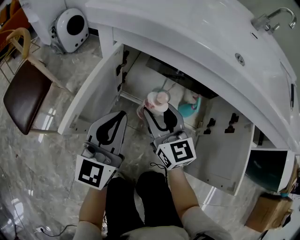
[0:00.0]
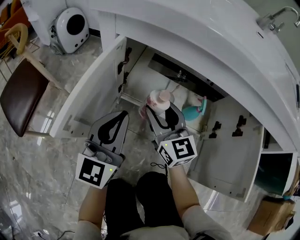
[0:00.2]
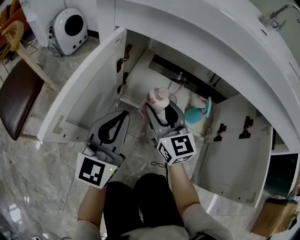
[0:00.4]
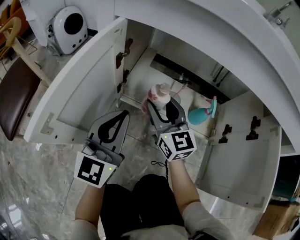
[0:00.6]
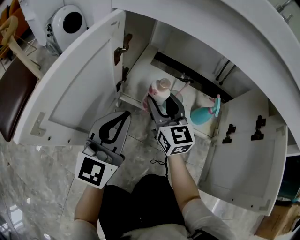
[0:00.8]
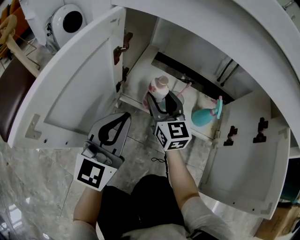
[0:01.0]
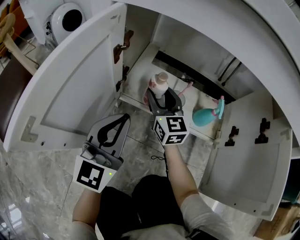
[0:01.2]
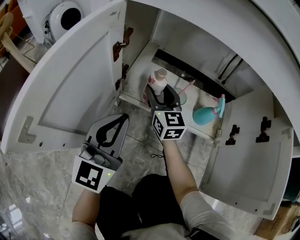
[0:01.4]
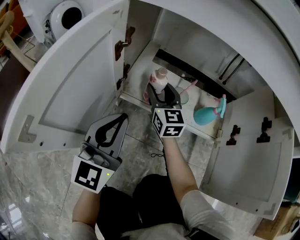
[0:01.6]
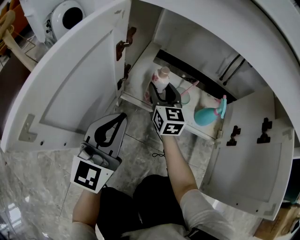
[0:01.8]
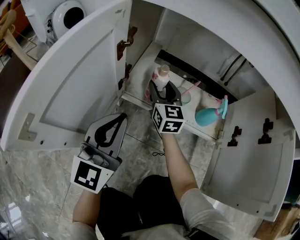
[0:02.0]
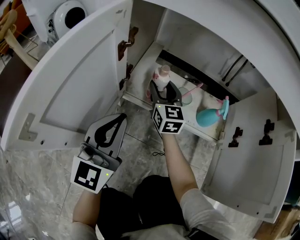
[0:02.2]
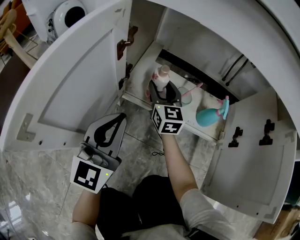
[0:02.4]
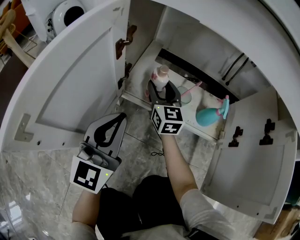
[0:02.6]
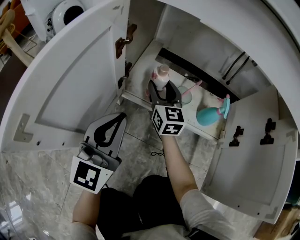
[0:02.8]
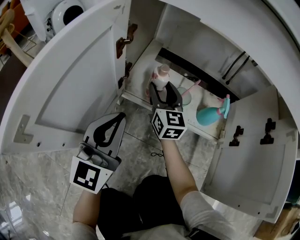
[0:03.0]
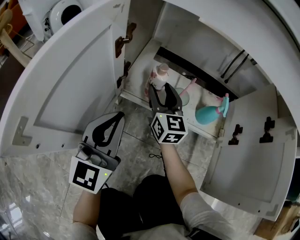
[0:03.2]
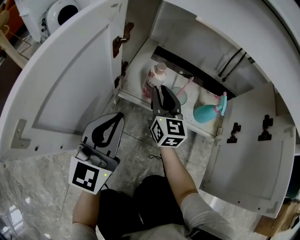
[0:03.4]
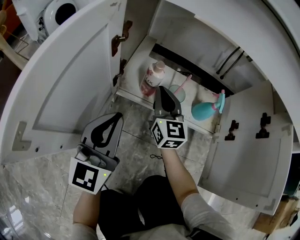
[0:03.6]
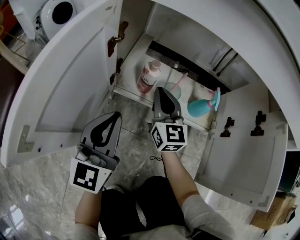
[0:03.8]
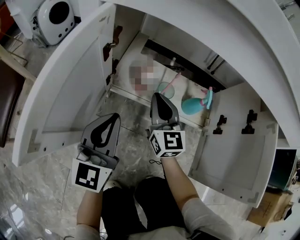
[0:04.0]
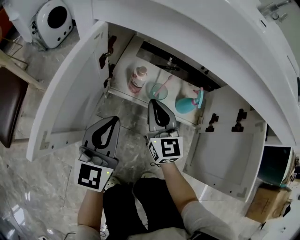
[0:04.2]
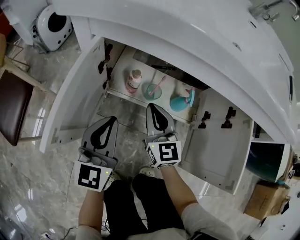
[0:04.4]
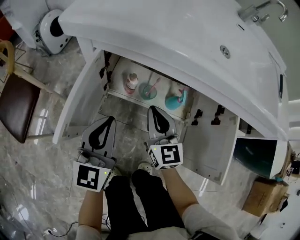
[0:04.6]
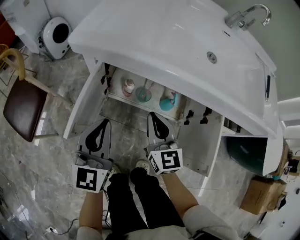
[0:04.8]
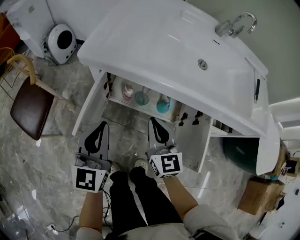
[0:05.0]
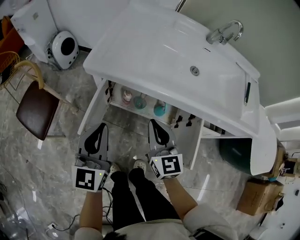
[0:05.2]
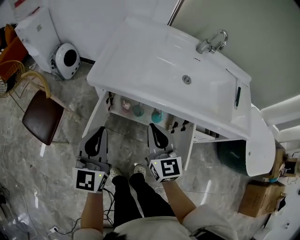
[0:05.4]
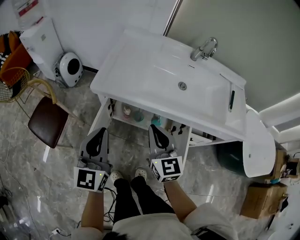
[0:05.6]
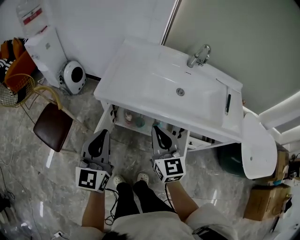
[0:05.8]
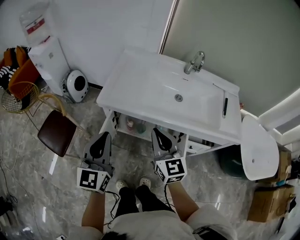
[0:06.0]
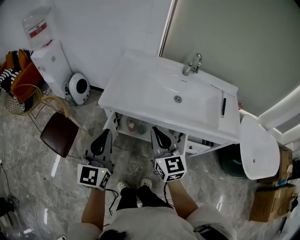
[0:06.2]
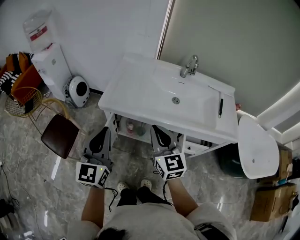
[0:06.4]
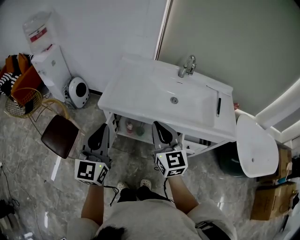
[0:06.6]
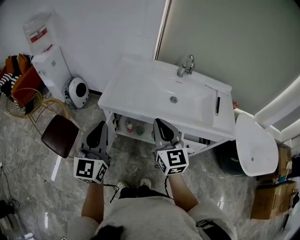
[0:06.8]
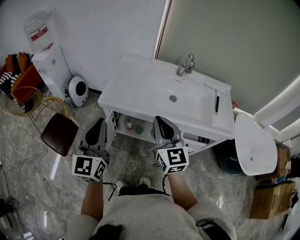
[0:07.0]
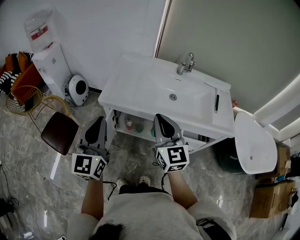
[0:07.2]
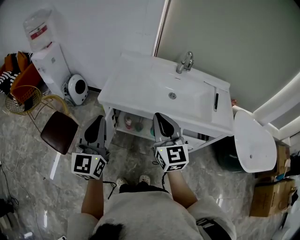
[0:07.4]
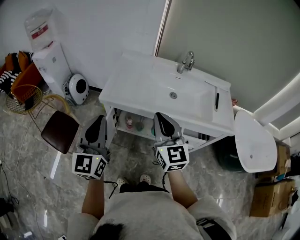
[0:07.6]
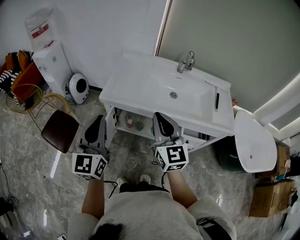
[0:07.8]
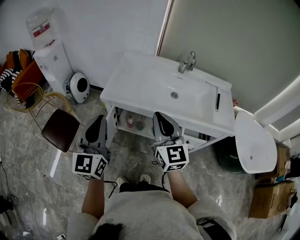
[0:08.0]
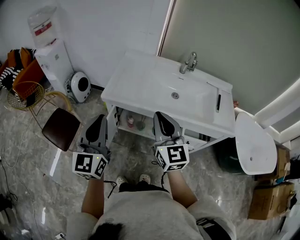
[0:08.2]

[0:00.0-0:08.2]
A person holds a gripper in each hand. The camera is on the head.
0.0 to 1.6 s: The right gripper travels downward and forward by roughly 25 cm. Meanwhile the left gripper shifts roughly 15 cm downward.
1.6 to 3.2 s: The grippers make only small movements.
3.2 to 5.0 s: The right gripper goes roughly 40 cm upward and backward, and closes, while the left gripper travels upward by approximately 35 cm.
5.0 to 6.6 s: Both grippers move upward, approximately 30 cm.
6.6 to 8.2 s: The grippers make only small movements.

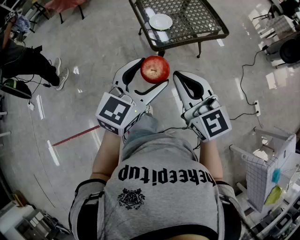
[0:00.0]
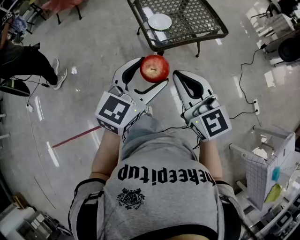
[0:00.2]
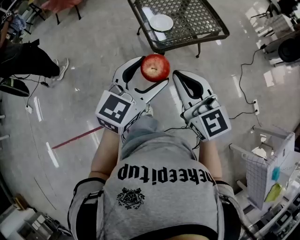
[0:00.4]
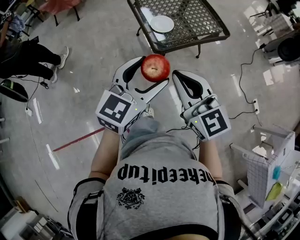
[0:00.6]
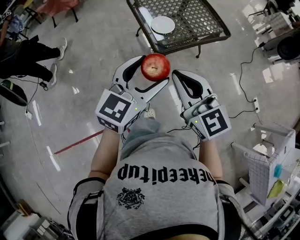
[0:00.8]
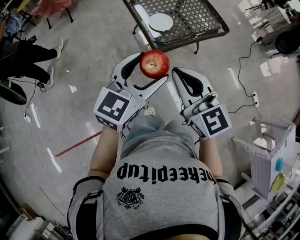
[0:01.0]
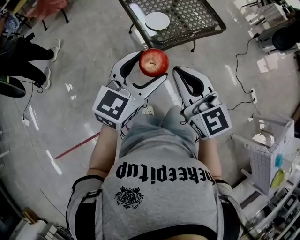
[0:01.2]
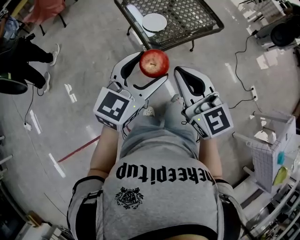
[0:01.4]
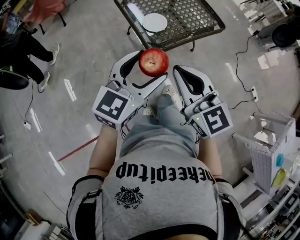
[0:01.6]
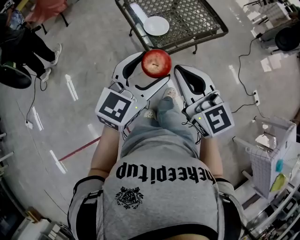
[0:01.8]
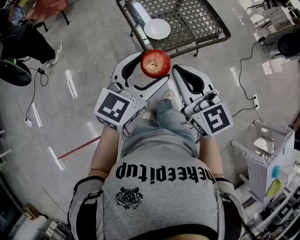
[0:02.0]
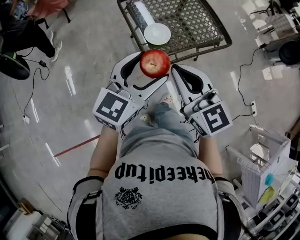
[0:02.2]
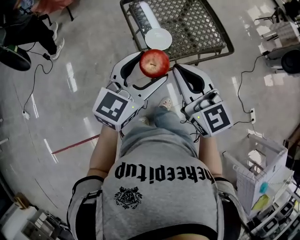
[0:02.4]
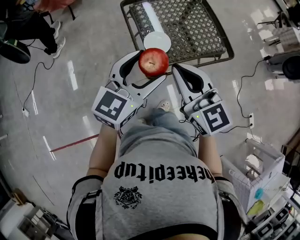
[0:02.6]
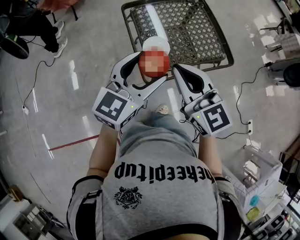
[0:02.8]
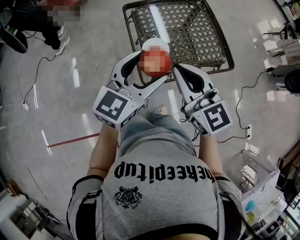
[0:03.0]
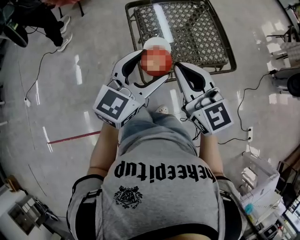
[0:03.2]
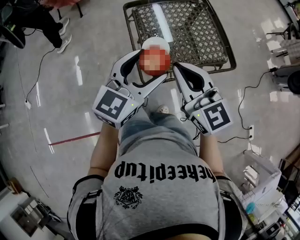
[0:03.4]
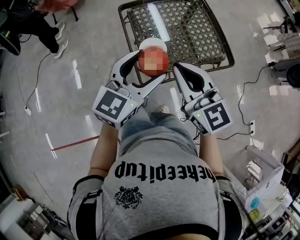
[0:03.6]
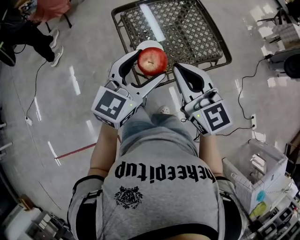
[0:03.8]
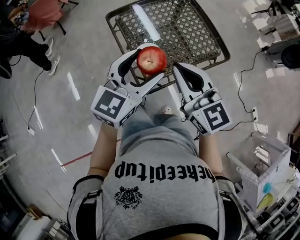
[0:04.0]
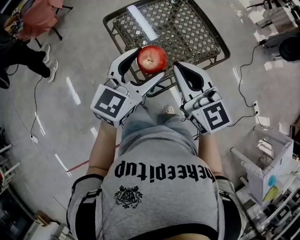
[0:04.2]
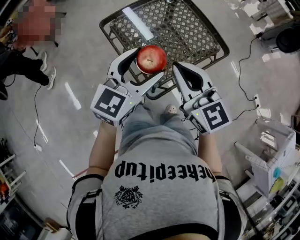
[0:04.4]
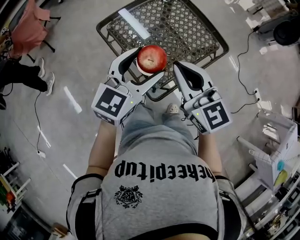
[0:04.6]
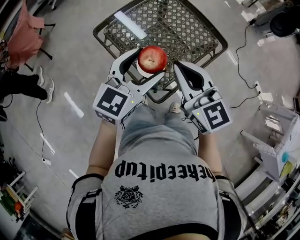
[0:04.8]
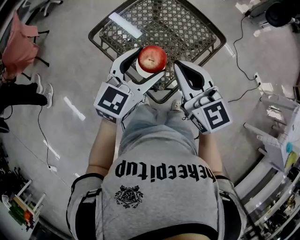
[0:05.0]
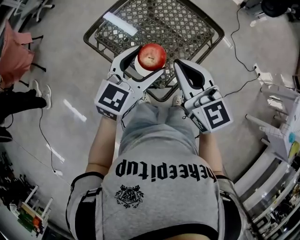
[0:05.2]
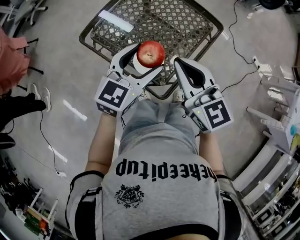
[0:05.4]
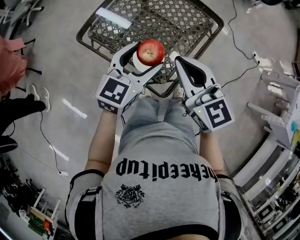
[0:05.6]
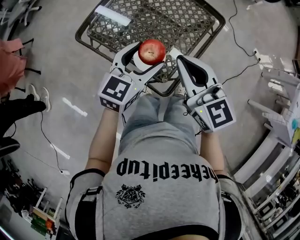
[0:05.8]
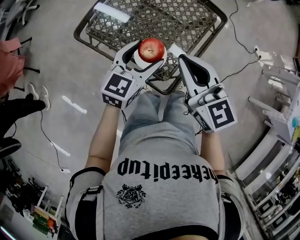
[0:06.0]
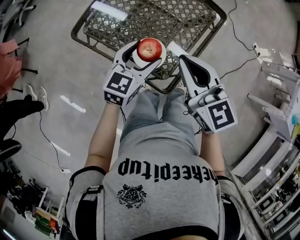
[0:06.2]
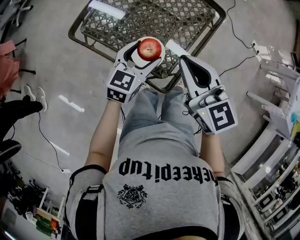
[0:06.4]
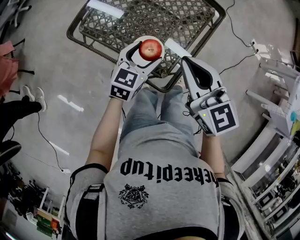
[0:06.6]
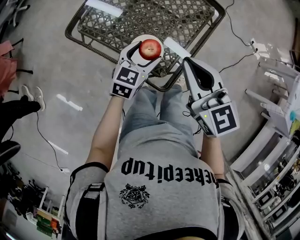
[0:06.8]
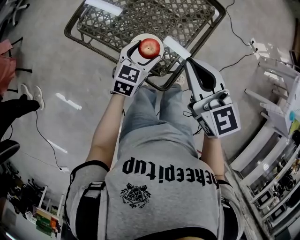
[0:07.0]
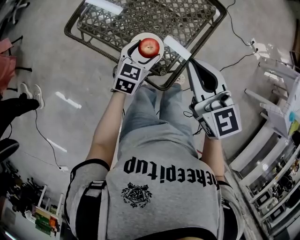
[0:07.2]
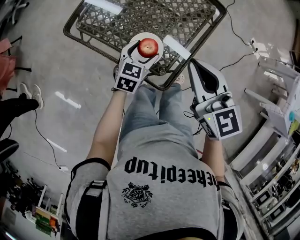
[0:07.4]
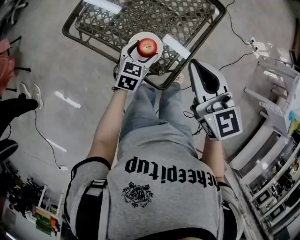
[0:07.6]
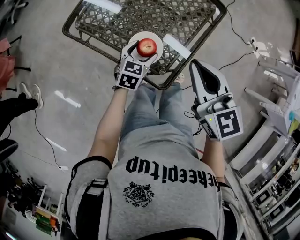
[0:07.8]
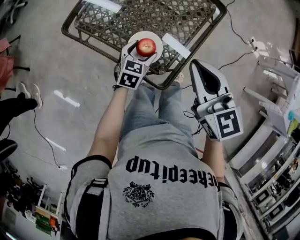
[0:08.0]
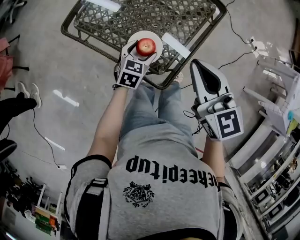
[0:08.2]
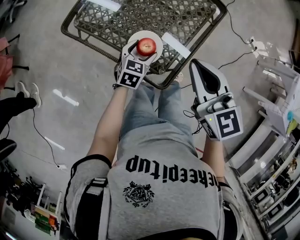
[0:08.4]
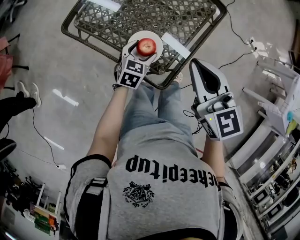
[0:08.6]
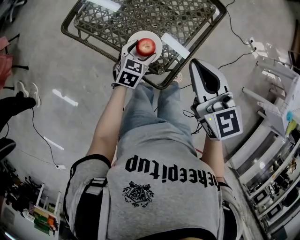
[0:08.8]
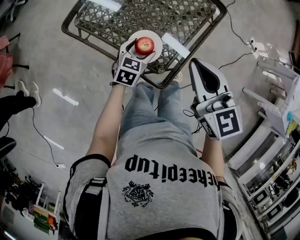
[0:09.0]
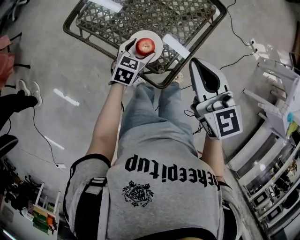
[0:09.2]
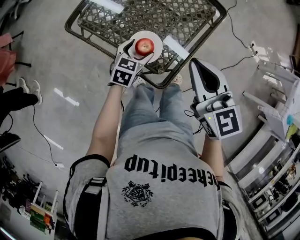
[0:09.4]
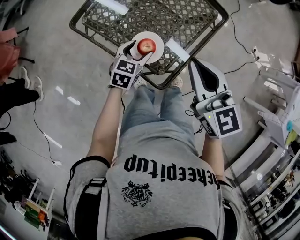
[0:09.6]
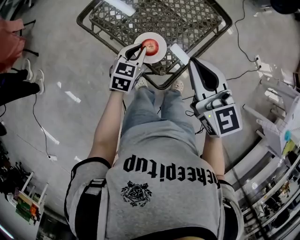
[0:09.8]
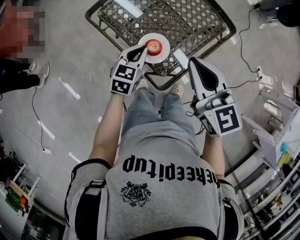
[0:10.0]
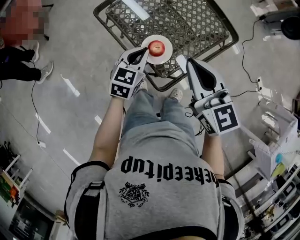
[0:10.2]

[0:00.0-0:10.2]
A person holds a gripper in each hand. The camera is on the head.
0.0 to 1.4 s: Both grippers move forward, some 5 cm.
1.4 to 3.0 s: Both grippers move forward, roughly 20 cm.
3.0 to 4.4 s: The left gripper travels forward by approximately 5 cm.
4.4 to 5.8 s: The left gripper travels downward and forward by some 15 cm, and rotates about 20 degrees, while the right gripper moves downward, forward and to the left, roughly 10 cm, and swivels some 20 degrees.
5.8 to 7.2 s: The left gripper goes some 15 cm downward.
7.2 to 8.8 s: The left gripper travels downward by approximately 5 cm.
8.8 to 10.2 s: The left gripper travels upward by about 15 cm, swivels some 20 degrees, and closes.

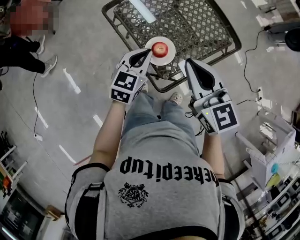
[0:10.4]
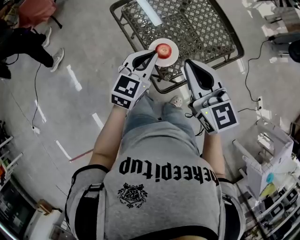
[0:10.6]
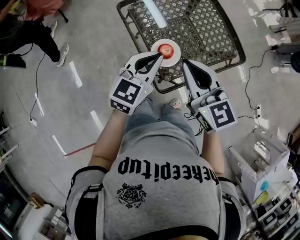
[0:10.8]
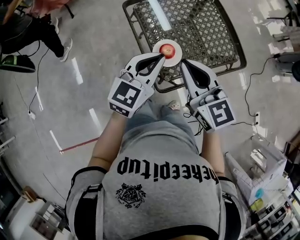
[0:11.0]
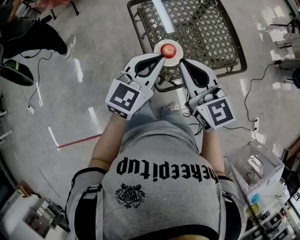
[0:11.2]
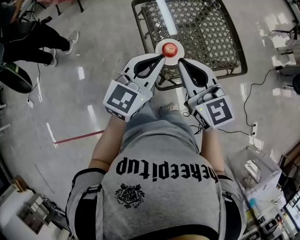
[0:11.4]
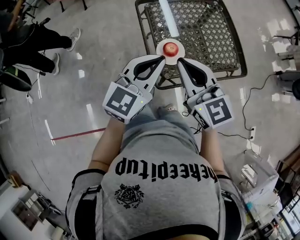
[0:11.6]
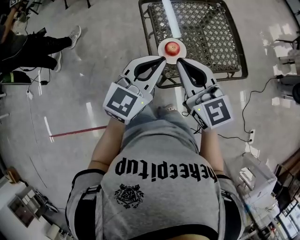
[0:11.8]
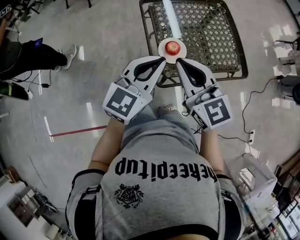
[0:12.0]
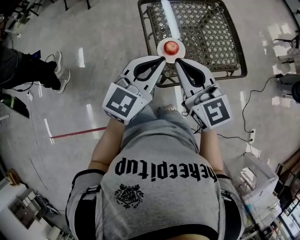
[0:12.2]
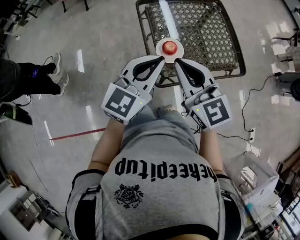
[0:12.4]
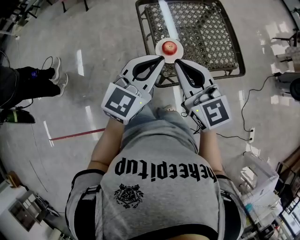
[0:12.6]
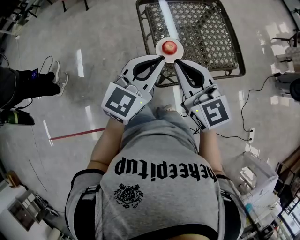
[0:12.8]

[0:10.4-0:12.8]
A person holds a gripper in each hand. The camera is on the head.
10.4 to 11.6 s: The right gripper changes place by approximately 5 cm, and rotates approximately 20 degrees. The left gripper heads upward and backward, covering roughly 20 cm.
11.6 to 12.8 s: The grippers make only small movements.

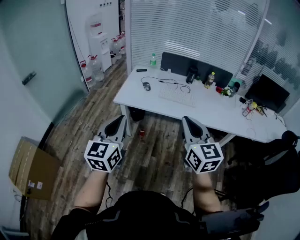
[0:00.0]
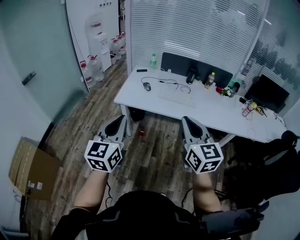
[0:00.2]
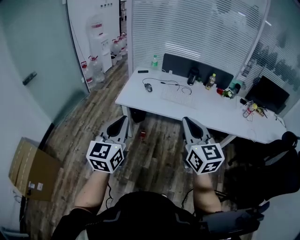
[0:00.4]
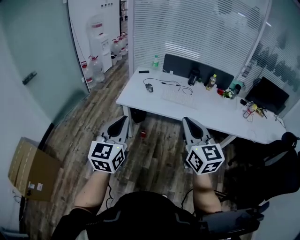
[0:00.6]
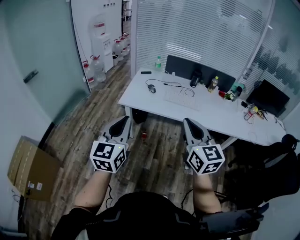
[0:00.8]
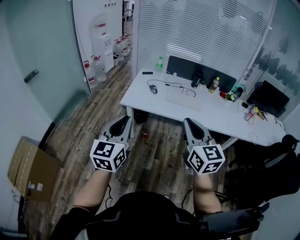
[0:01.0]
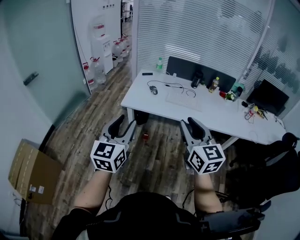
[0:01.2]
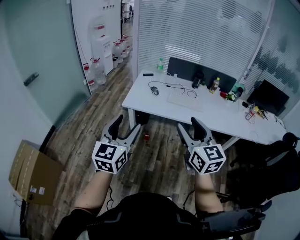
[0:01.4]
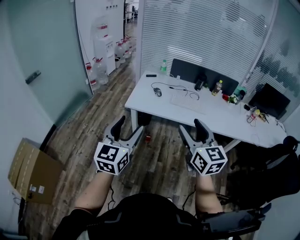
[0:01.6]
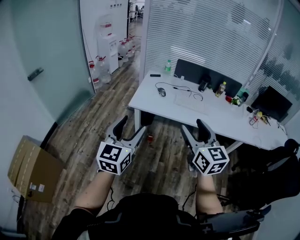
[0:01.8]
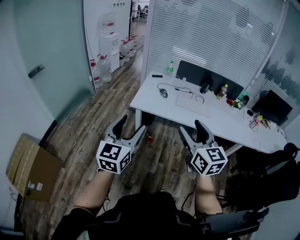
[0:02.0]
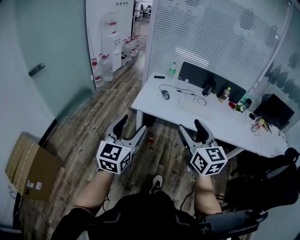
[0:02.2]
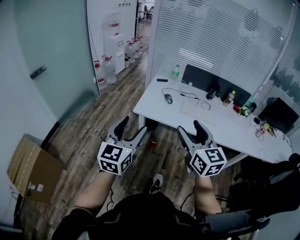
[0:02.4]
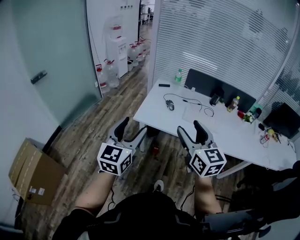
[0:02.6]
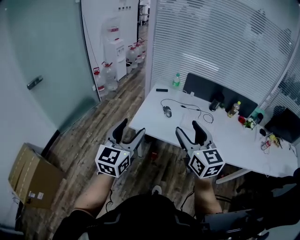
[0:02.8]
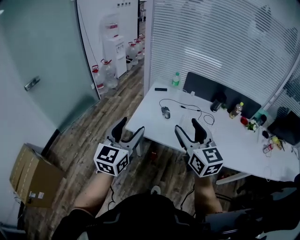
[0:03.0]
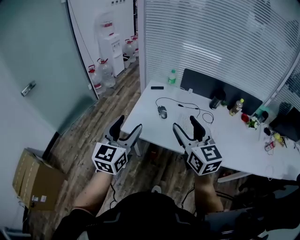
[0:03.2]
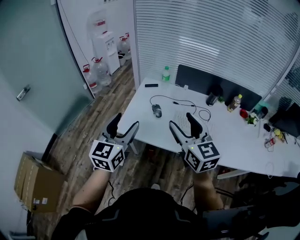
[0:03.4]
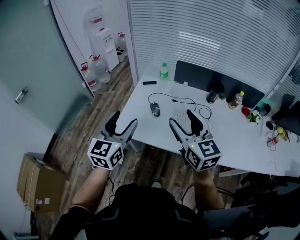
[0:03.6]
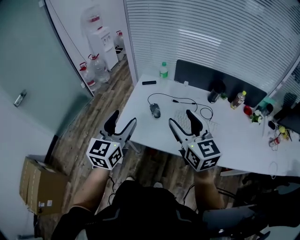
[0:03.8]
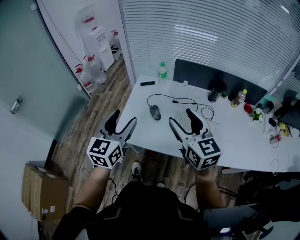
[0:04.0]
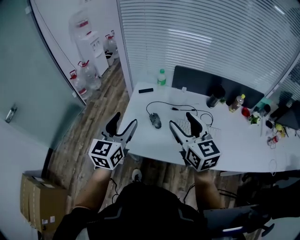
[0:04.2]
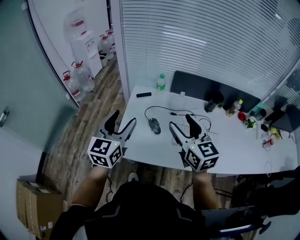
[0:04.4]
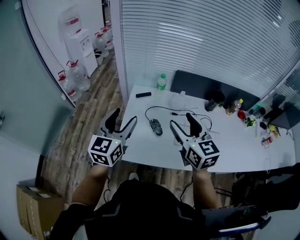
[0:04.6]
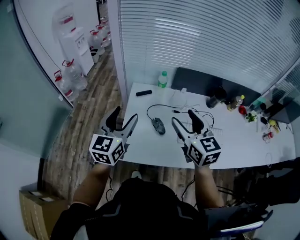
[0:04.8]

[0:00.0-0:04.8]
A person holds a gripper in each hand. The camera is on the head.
0.0 to 1.6 s: The two grippers go approximately 10 cm to the left. The right gripper opens its fingers, while the left gripper opens up.
1.6 to 3.2 s: Both grippers move forward, some 30 cm.
3.2 to 4.8 s: The grippers both shift forward by roughly 25 cm.
